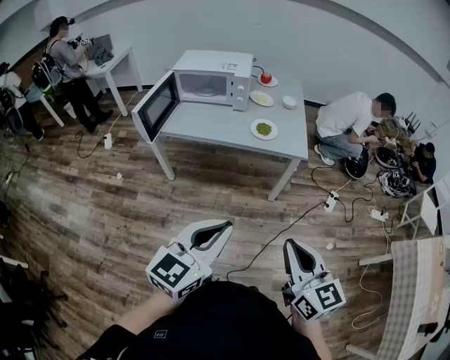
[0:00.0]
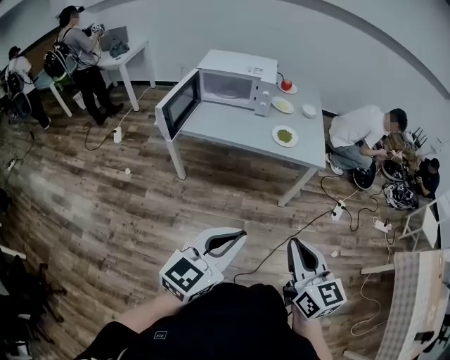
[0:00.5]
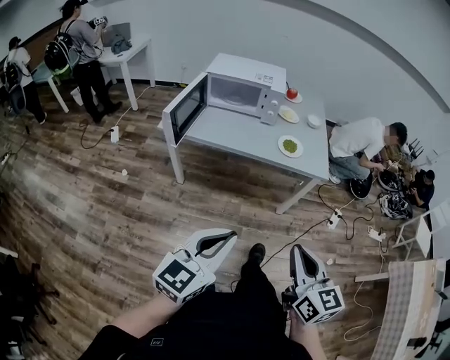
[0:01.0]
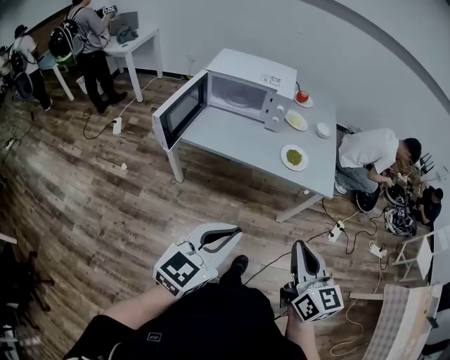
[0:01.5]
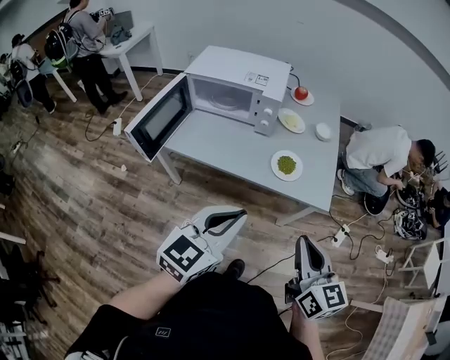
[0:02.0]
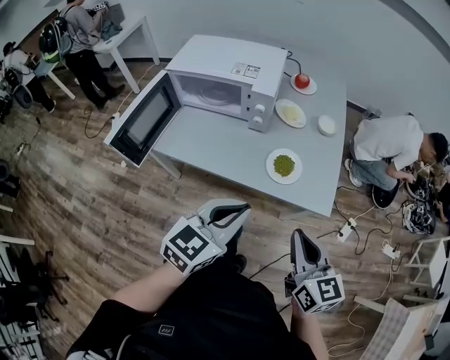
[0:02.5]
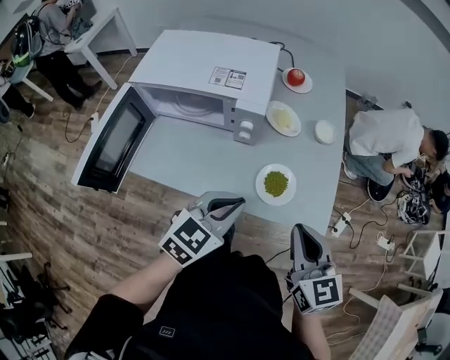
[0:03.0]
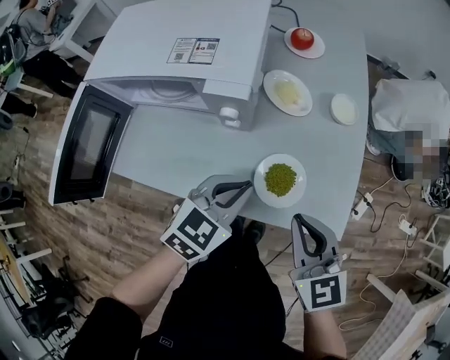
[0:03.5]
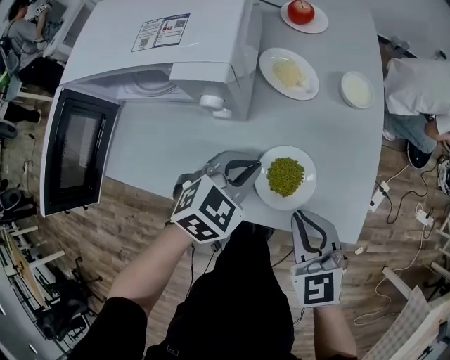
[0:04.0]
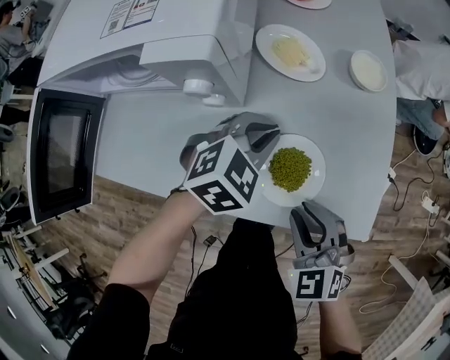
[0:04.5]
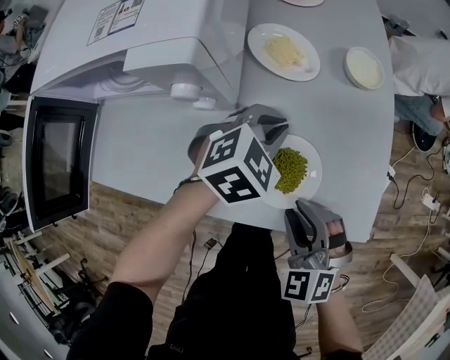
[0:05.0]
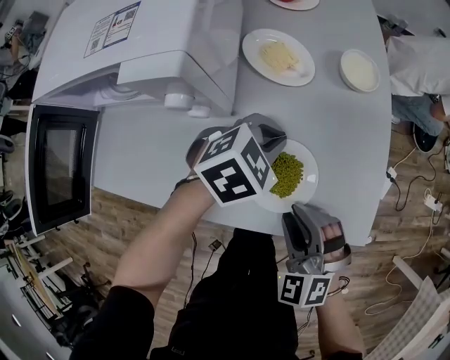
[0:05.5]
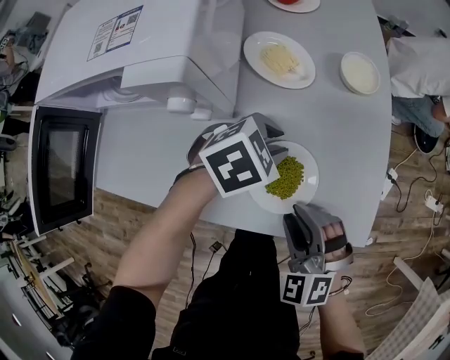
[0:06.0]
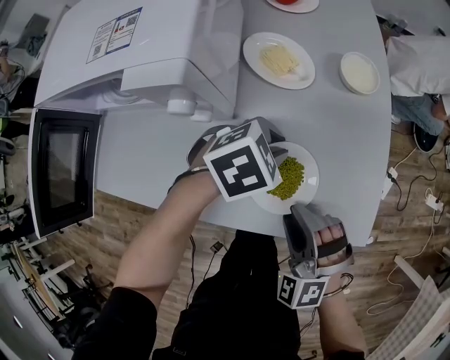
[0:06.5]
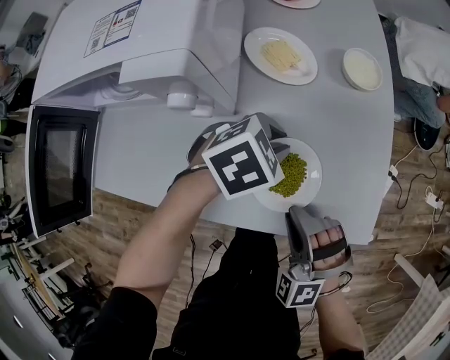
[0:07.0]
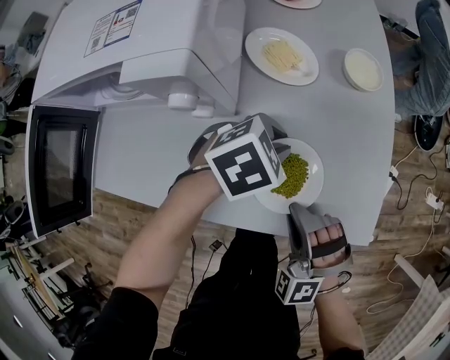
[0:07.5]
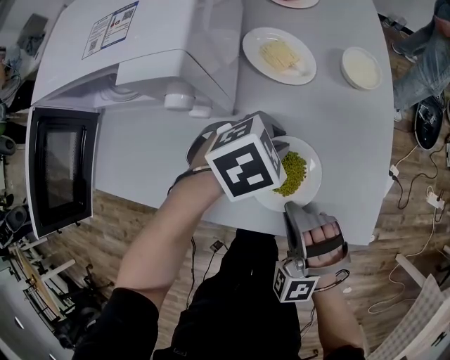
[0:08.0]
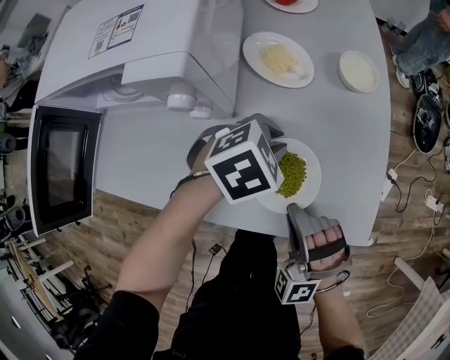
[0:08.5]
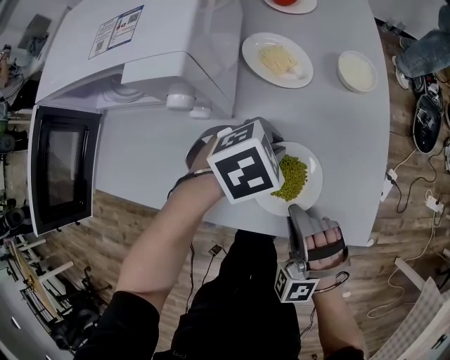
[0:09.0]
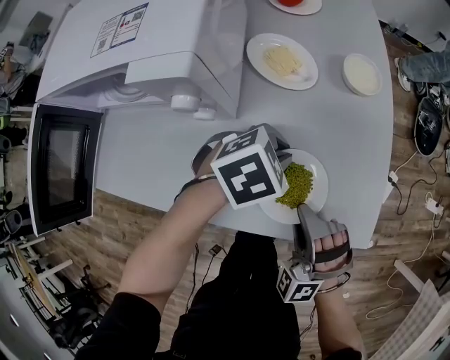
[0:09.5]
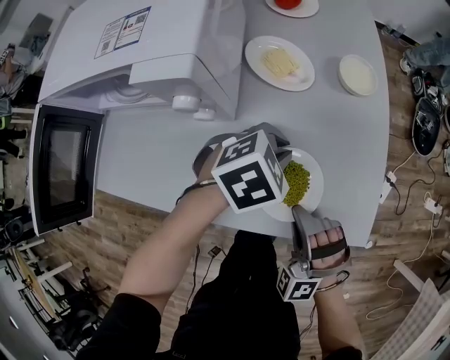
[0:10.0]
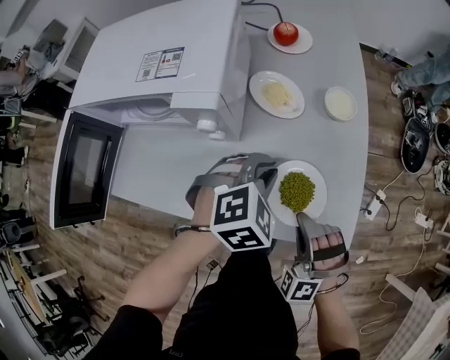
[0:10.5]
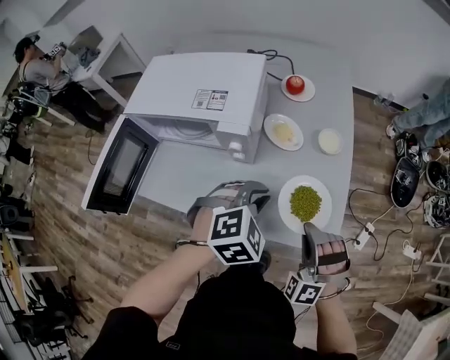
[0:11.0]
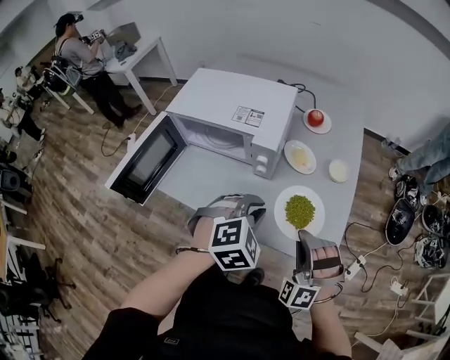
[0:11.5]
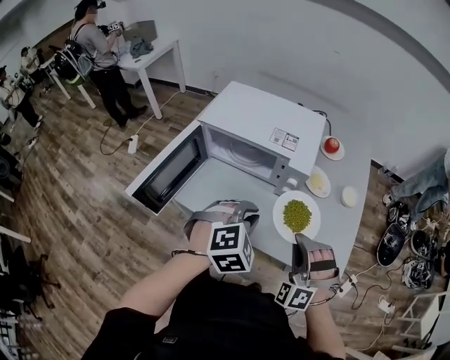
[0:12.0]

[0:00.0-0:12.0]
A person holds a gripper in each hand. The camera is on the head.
0.0 to 2.0 s: The grippers both shift forward by roughly 30 cm.
2.0 to 4.0 s: The two grippers go roughly 40 cm forward and downward. The left gripper tips its fingers downward by approximately 30 degrees. The right gripper swivels approximately 40 degrees.
4.0 to 6.0 s: The left gripper travels forward and downward by approximately 10 cm, swivels approximately 20 degrees, and opens; the right gripper goes some 5 cm downward, swivels roughly 30 degrees, and opens.
6.0 to 8.0 s: The right gripper swivels roughly 30 degrees, and closes its fingers.
8.0 to 10.0 s: There are only small adjustments of the grippers.
10.0 to 12.0 s: The left gripper changes place by about 35 cm, and rotates about 30 degrees. The right gripper goes some 25 cm upward.

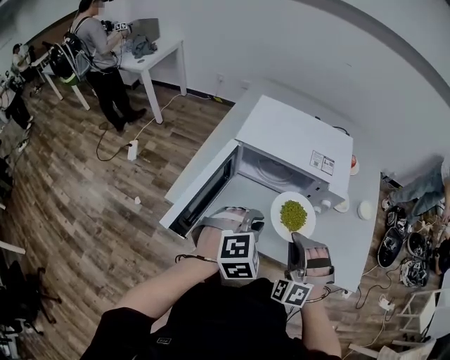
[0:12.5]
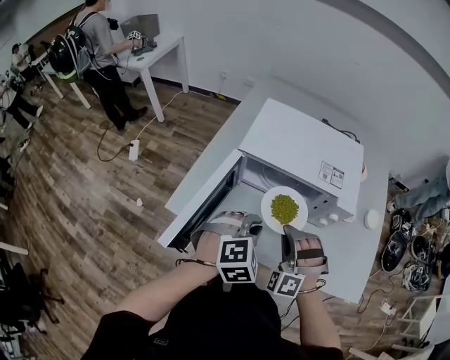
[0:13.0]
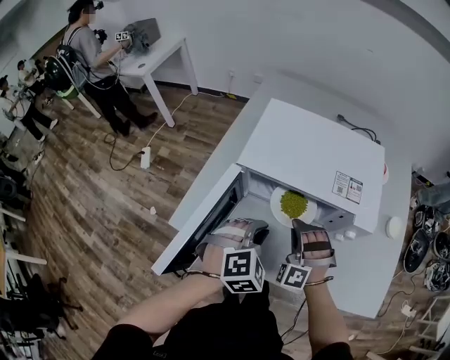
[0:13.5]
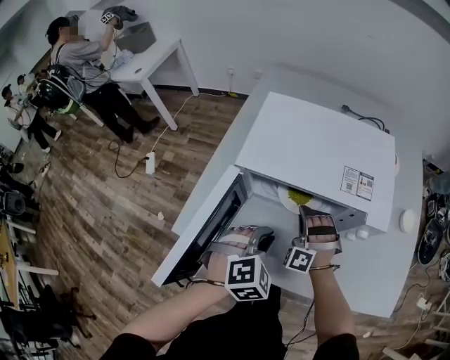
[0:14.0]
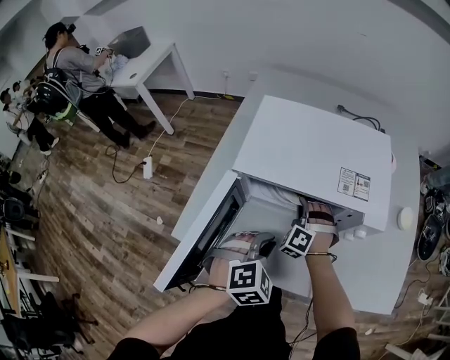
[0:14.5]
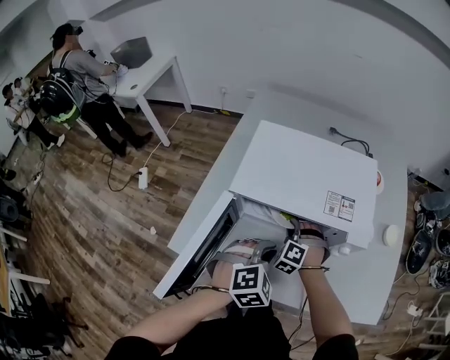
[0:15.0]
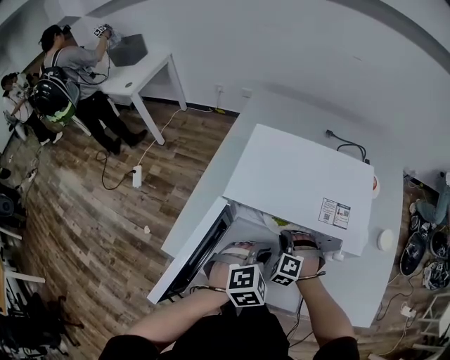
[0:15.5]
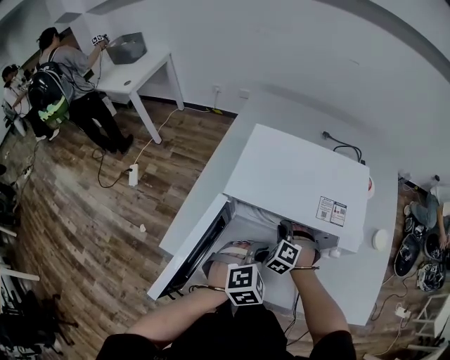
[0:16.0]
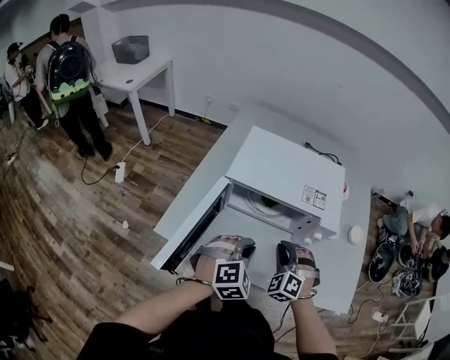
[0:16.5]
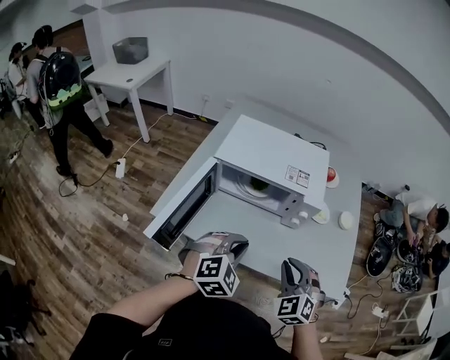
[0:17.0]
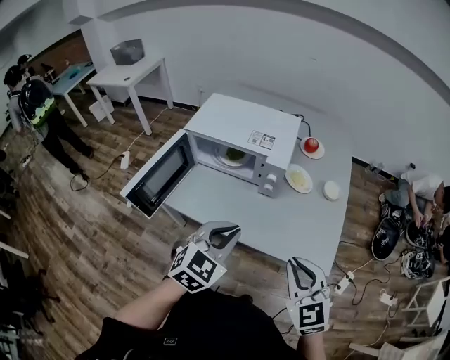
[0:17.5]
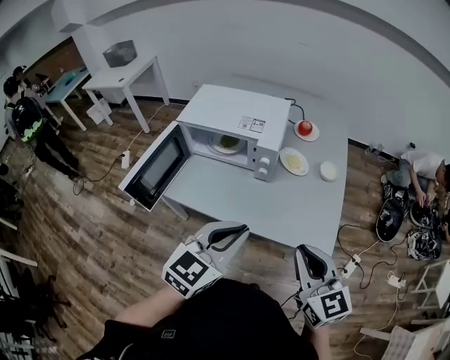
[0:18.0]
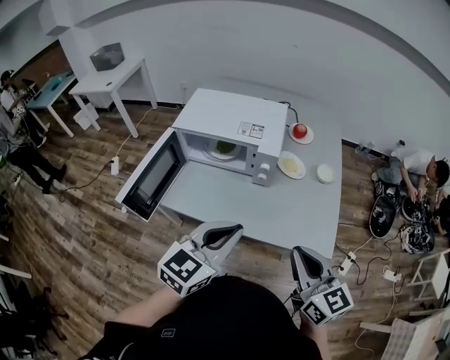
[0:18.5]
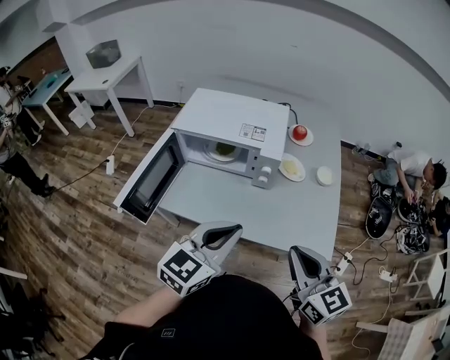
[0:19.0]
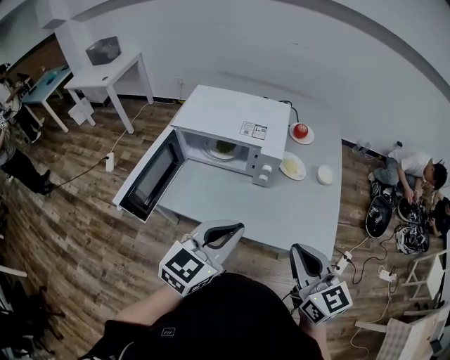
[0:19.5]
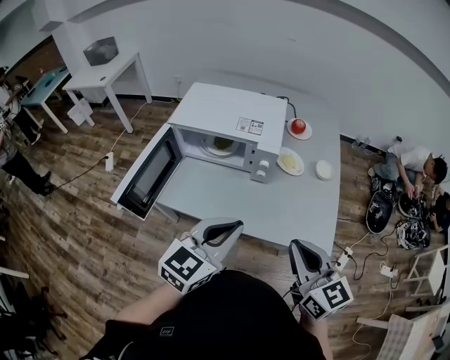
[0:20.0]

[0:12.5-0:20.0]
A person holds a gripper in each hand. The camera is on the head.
12.5 to 14.5 s: The left gripper travels downward and forward by roughly 15 cm, while the right gripper heads forward and downward, covering approximately 30 cm.
14.5 to 16.5 s: The left gripper is displaced upward by approximately 5 cm. The right gripper goes approximately 20 cm backward, upward and to the right.
16.5 to 18.0 s: Both grippers travel together to the right, backward and upward, roughly 35 cm. The right gripper twists some 60 degrees clockwise, seen from behind. Meanwhile the left gripper turns by approximately 50 degrees.
18.0 to 20.0 s: The right gripper heads to the left, covering approximately 5 cm. The left gripper moves about 5 cm.

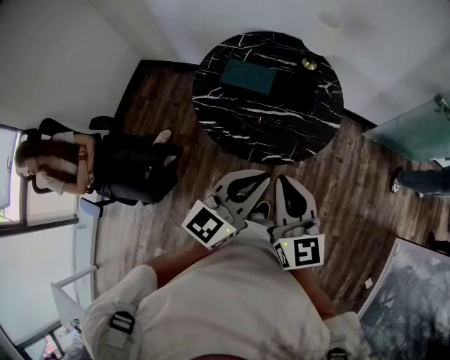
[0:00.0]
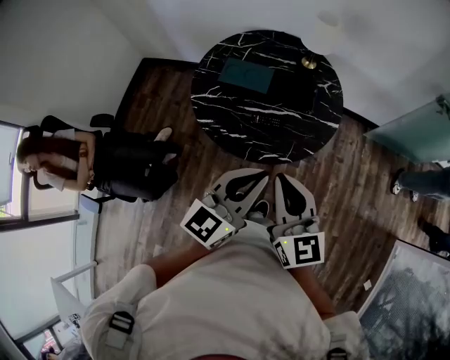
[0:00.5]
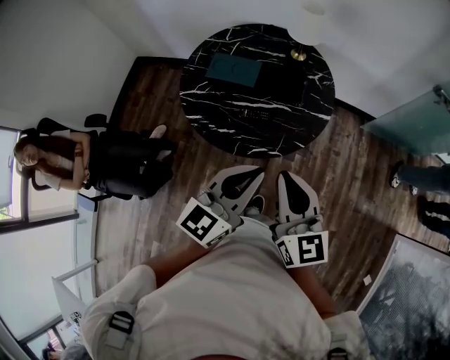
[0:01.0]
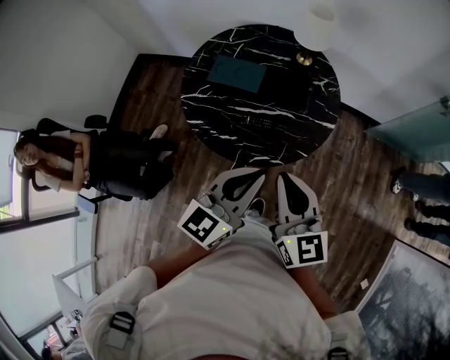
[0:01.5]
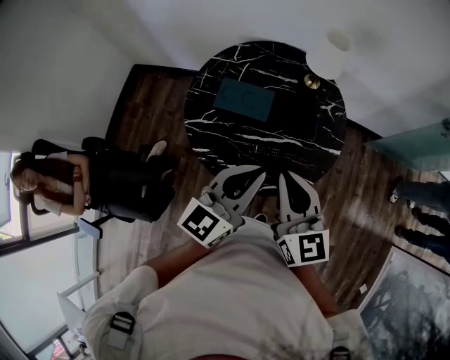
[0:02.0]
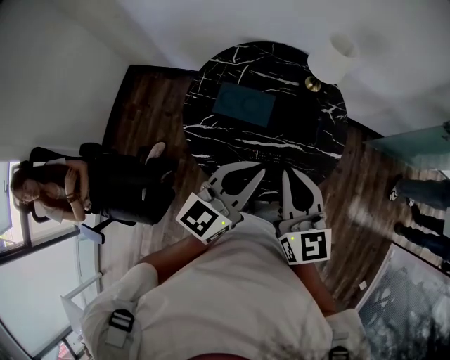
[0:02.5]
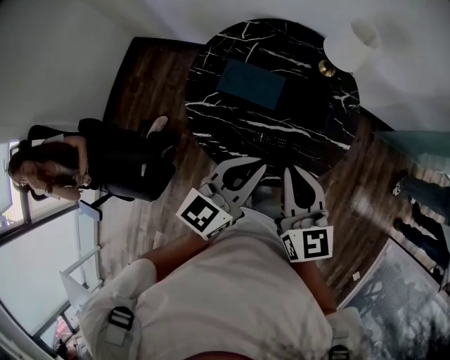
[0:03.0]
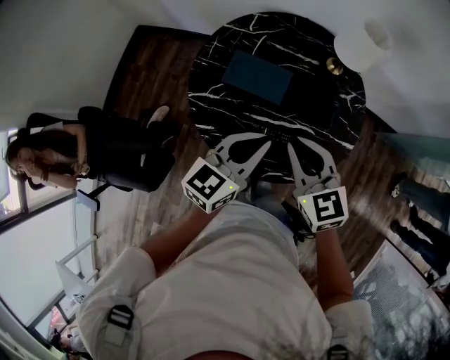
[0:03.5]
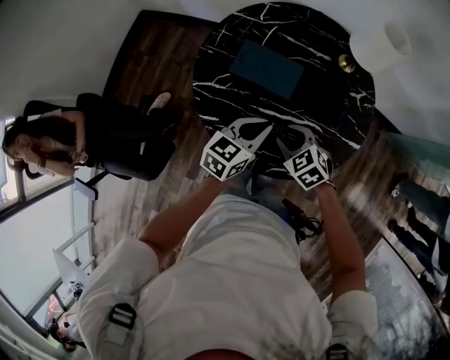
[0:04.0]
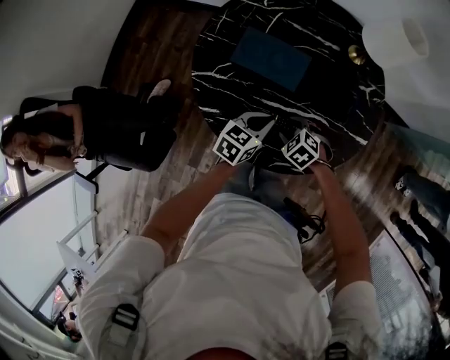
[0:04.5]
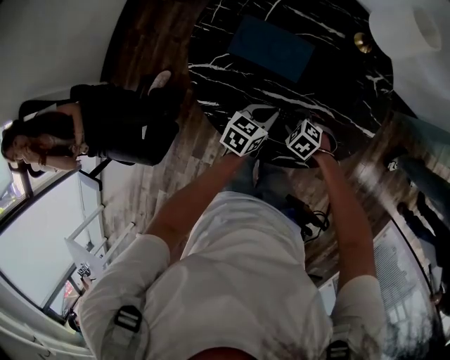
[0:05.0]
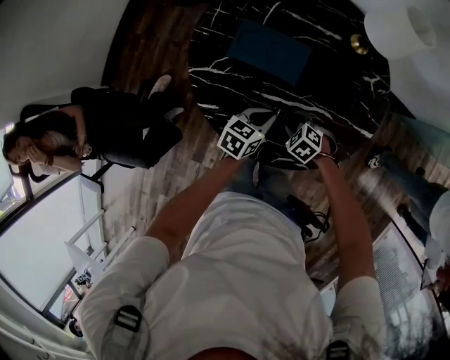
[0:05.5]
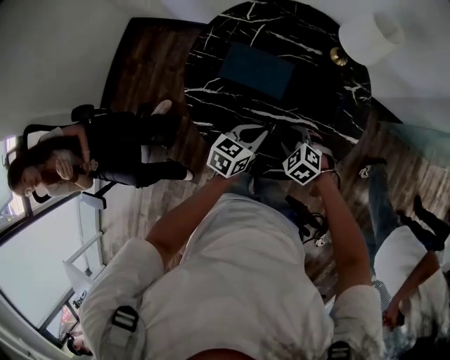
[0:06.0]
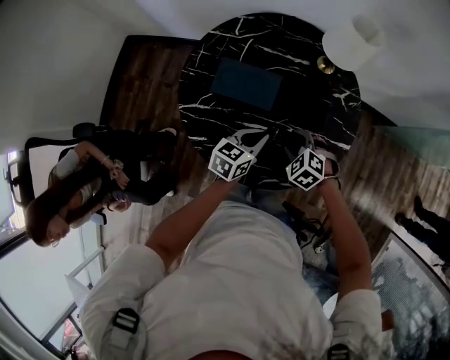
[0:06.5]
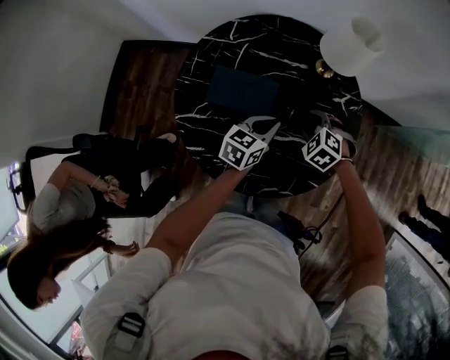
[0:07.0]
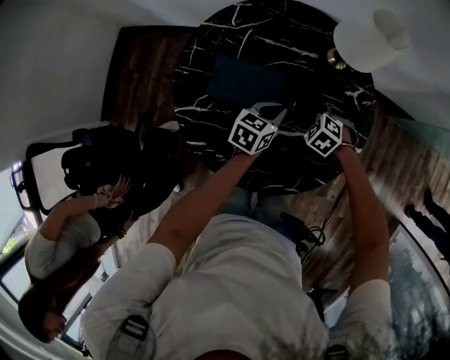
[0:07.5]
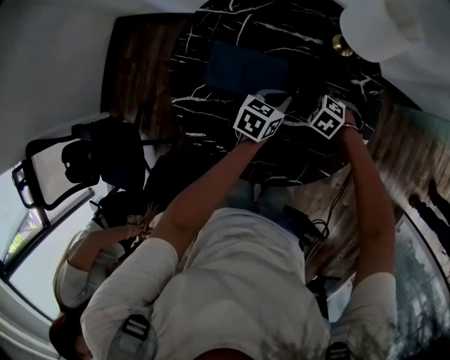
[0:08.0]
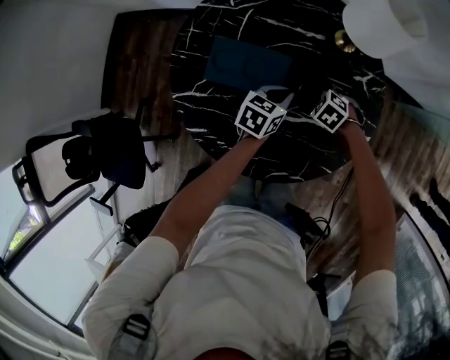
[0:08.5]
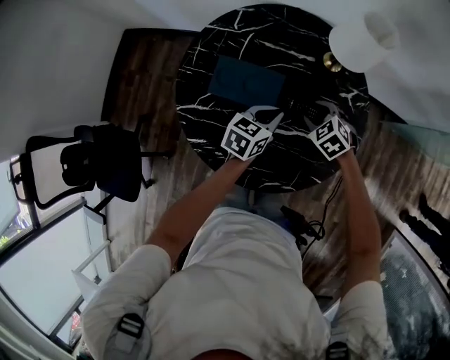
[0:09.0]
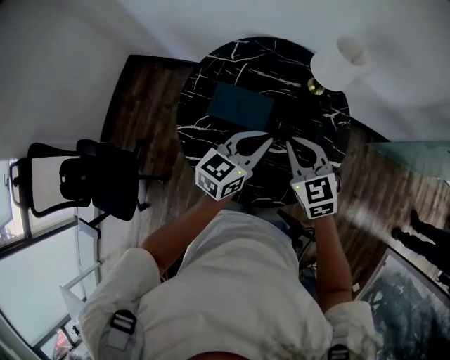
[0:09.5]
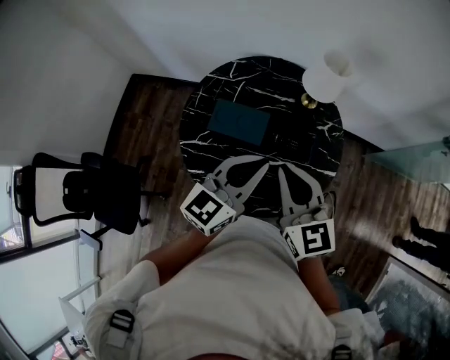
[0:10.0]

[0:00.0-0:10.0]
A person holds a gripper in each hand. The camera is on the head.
0.0 to 2.0 s: Both grippers travel together forward, some 15 cm.
2.0 to 4.0 s: The right gripper moves downward, roughly 25 cm, tips its fingers downward by approximately 50 degrees, and opens. The left gripper shifts about 25 cm downward and forward, and turns by roughly 30 degrees.
4.0 to 6.0 s: The grippers both shift downward by roughly 5 cm.
6.0 to 8.0 s: The left gripper moves about 20 cm. Meanwhile the right gripper shifts by approximately 20 cm.
8.0 to 10.0 s: The two grippers go some 40 cm upward. The right gripper points its fingers about 60 degrees further upward, and closes its fingers; the left gripper angles its fingers upward, by approximately 40 degrees.
